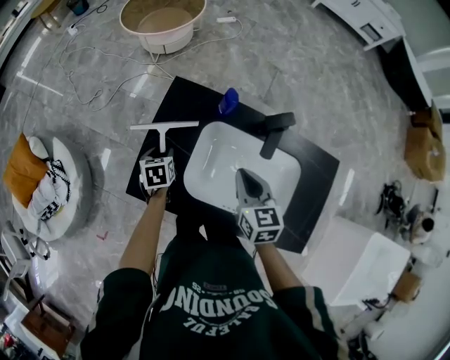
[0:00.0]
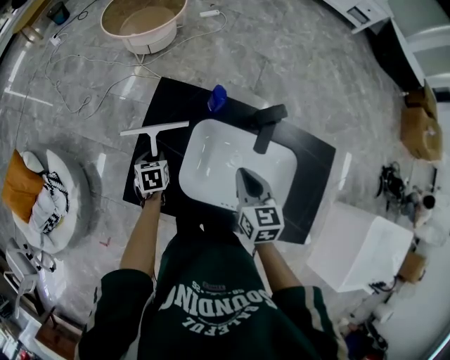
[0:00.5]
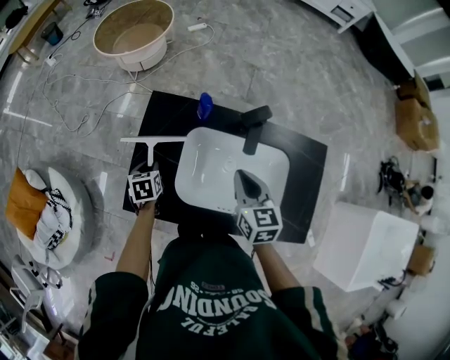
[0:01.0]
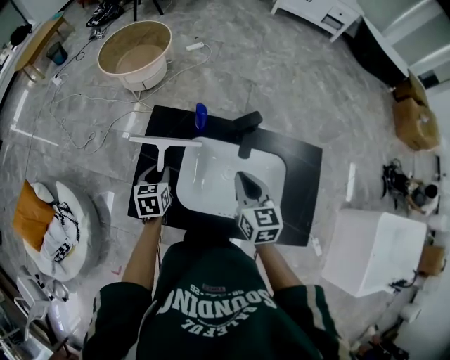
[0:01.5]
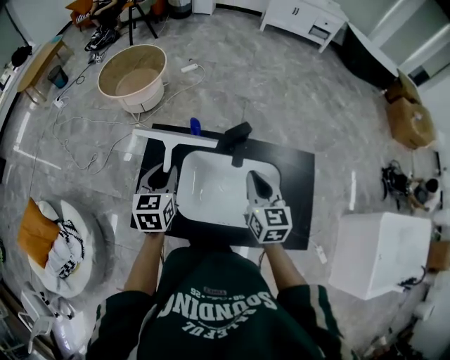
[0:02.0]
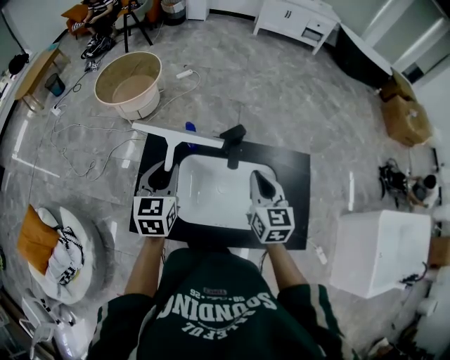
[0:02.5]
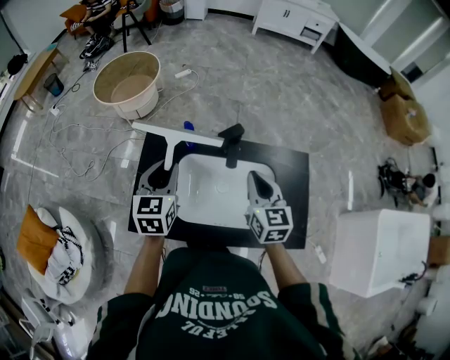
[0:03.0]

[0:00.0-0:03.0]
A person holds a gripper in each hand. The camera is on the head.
0:00.0 to 0:01.5: The left gripper heads upward and to the right, covering some 10 cm, and closes, while the right gripper moves roughly 5 cm.
0:01.5 to 0:03.0: The left gripper is displaced upward and to the right by roughly 20 cm, and turns by roughly 30 degrees. The right gripper travels to the right and upward by roughly 10 cm.

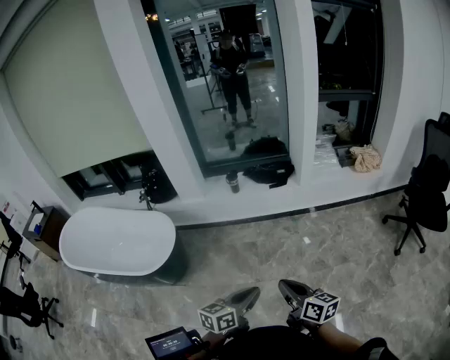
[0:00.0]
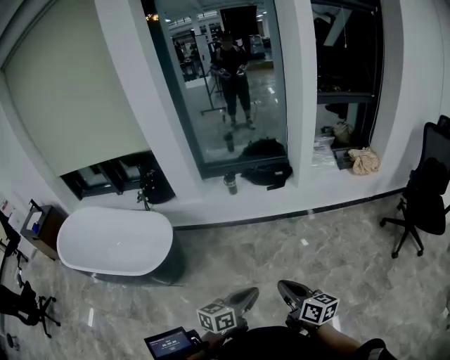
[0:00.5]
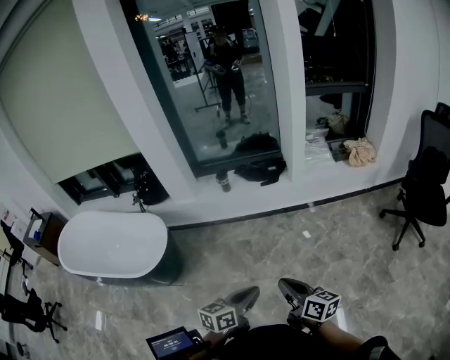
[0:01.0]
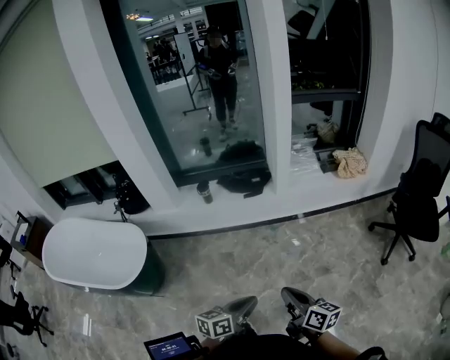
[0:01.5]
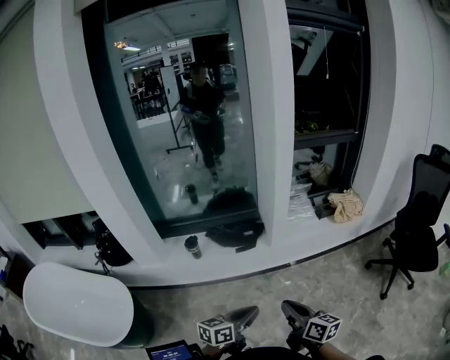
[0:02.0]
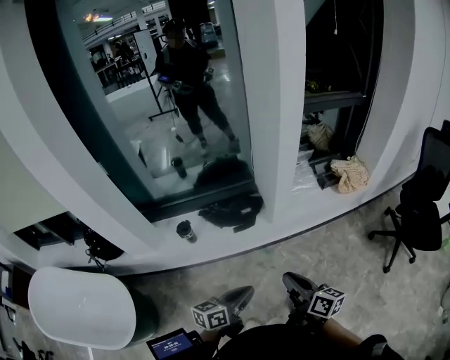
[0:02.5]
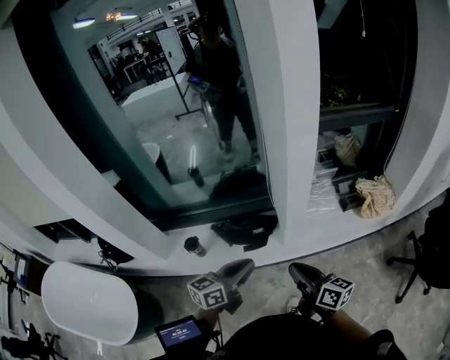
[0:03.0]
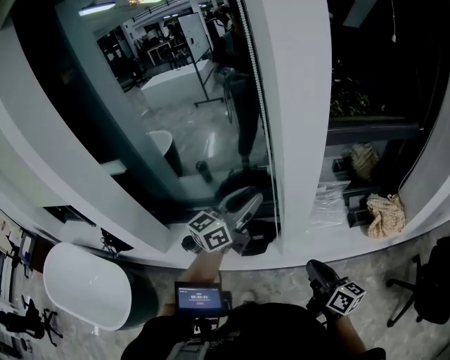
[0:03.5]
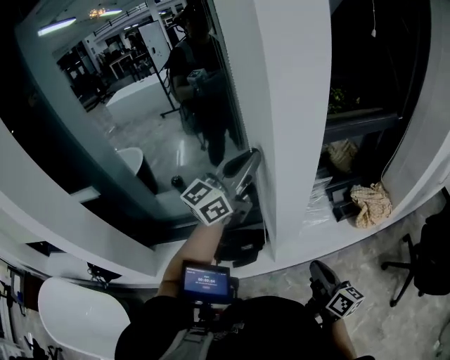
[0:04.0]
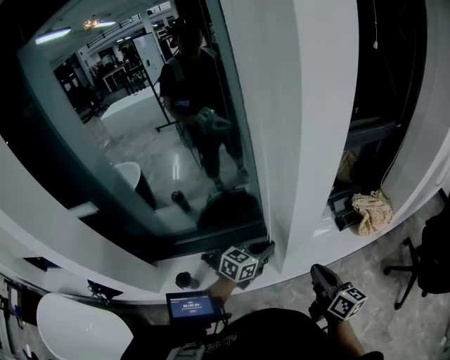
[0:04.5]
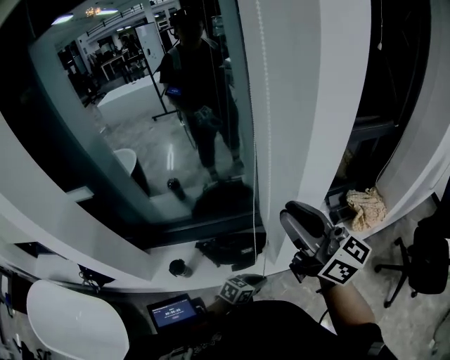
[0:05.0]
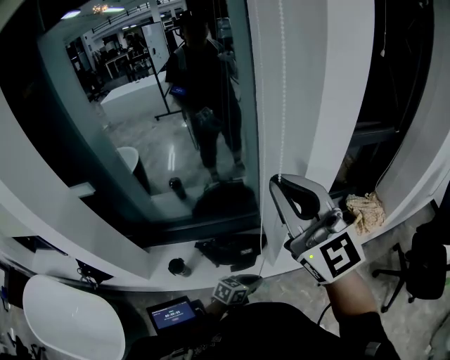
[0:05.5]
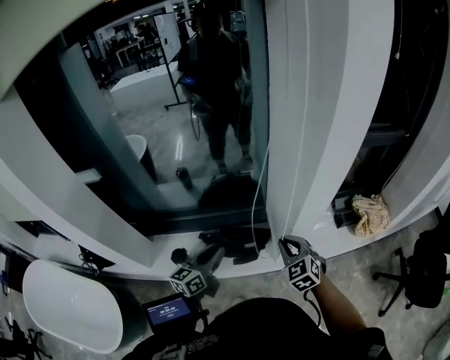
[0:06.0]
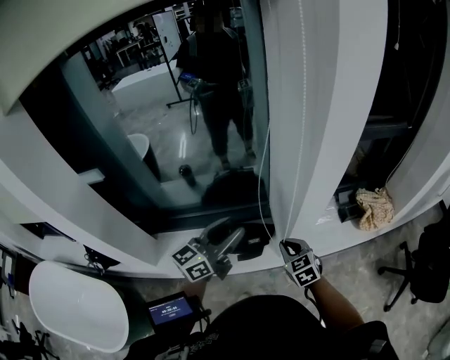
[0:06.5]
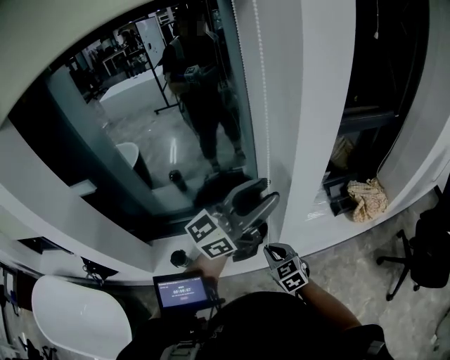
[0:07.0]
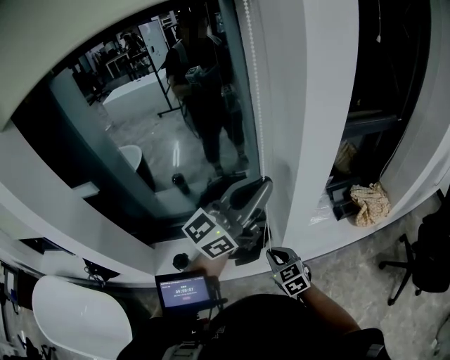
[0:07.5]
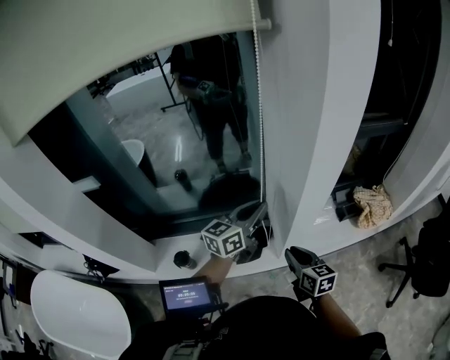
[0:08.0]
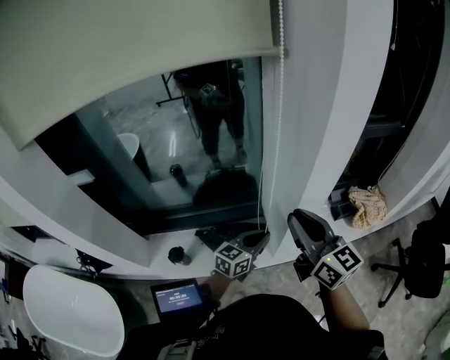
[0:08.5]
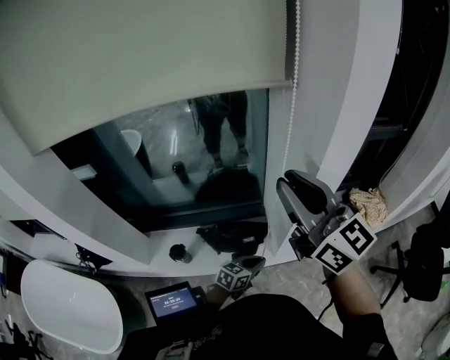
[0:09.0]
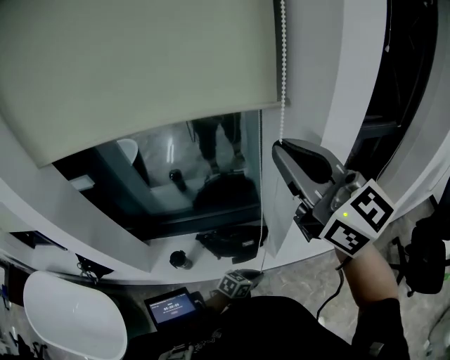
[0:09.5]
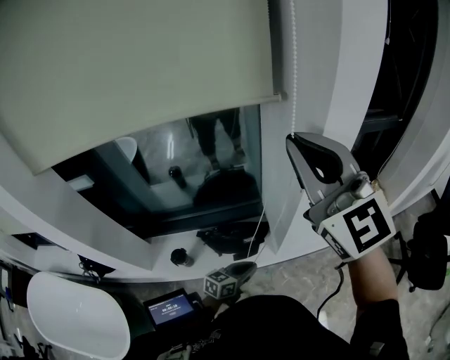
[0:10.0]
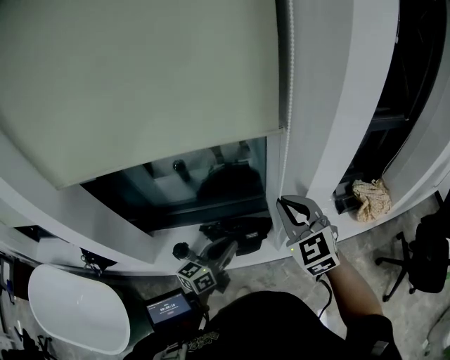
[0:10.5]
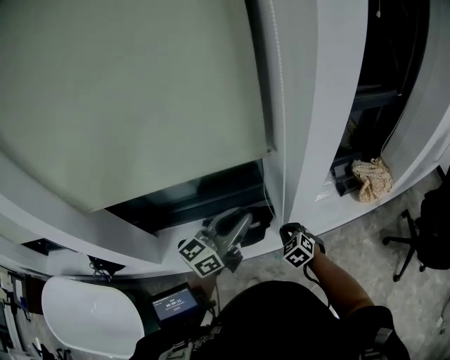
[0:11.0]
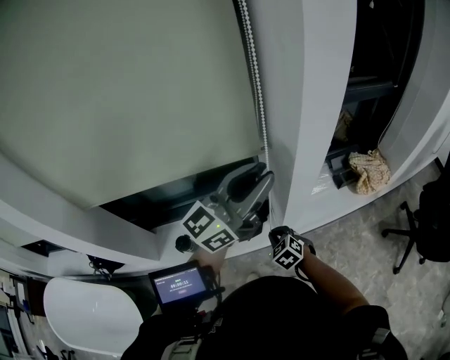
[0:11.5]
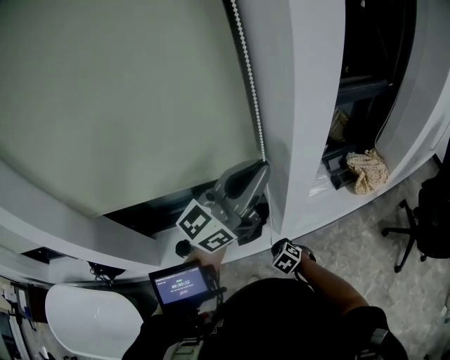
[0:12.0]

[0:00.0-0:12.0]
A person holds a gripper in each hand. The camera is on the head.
0:00.0 to 0:02.0: The right gripper shifts about 30 cm forward and to the right, while the left gripper travels forward by some 30 cm.
0:02.0 to 0:04.0: The pair of grippers is taken forward, some 50 cm. The left gripper travels upward by about 30 cm, tips its fingers upward by roughly 30 degrees, and opens, then closes once more.
0:04.0 to 0:06.0: The left gripper moves downward, backward and to the left, about 40 cm, and rotates roughly 40 degrees. Meanwhile the right gripper heads to the left, covering about 15 cm, moves about 35 cm upward and comes back, and rolls counterclockwise, seen from behind, by approximately 70 degrees.
0:06.0 to 0:08.0: The right gripper shifts by about 5 cm, and rotates around the line of its fingers by about 50 degrees, clockwise from behind; the left gripper travels to the right, forward and upward by about 20 cm.
0:08.0 to 0:10.0: The left gripper heads downward and backward, covering some 30 cm, and turns by some 30 degrees. Meanwhile the right gripper travels upward by roughly 40 cm, and rolls counterclockwise, seen from behind, by approximately 50 degrees.
0:10.0 to 0:12.0: The left gripper is displaced upward by about 40 cm, and angles its fingers upward, by some 40 degrees, while the right gripper heads downward, covering about 60 cm, and points its fingers roughly 80 degrees further downward.

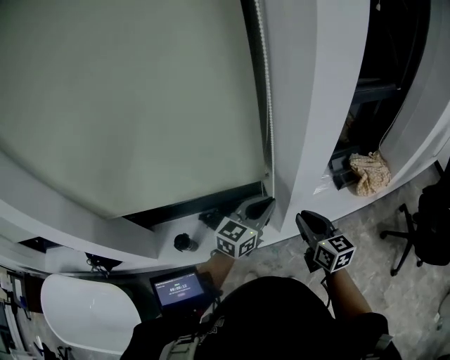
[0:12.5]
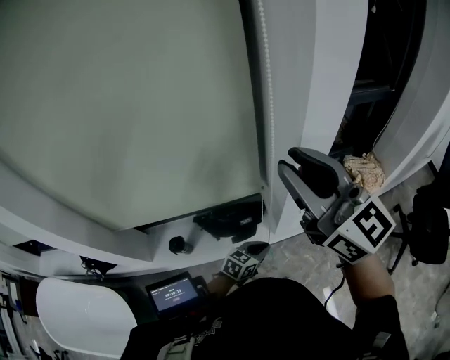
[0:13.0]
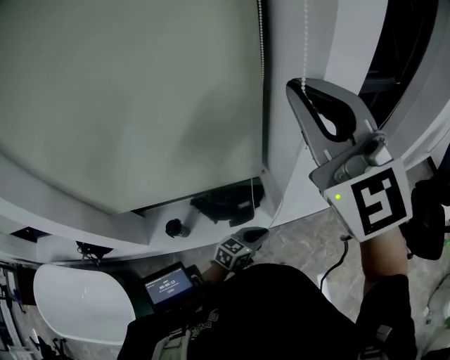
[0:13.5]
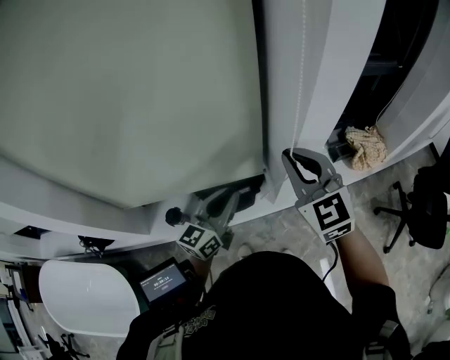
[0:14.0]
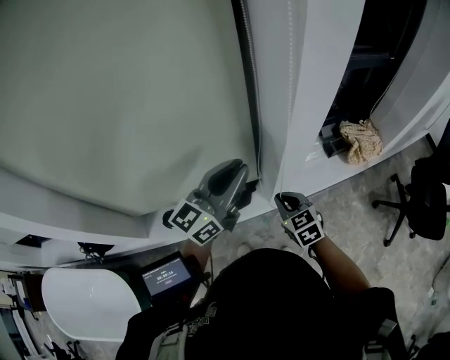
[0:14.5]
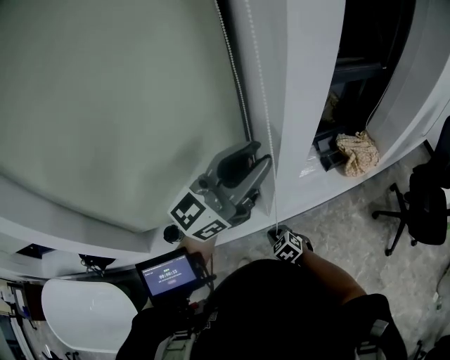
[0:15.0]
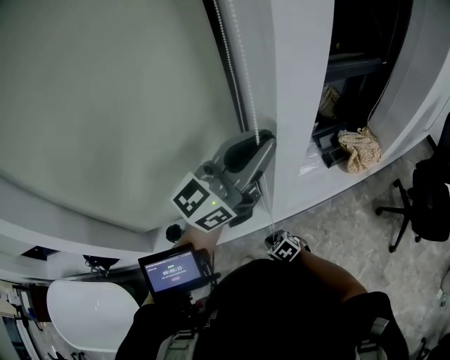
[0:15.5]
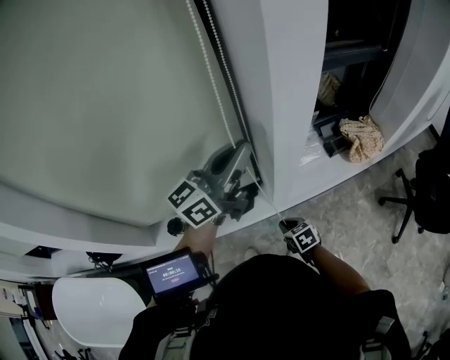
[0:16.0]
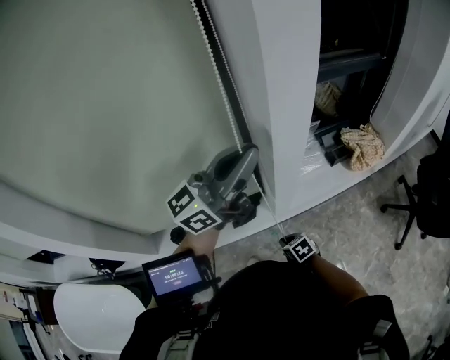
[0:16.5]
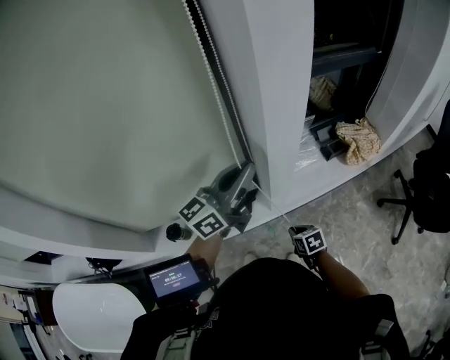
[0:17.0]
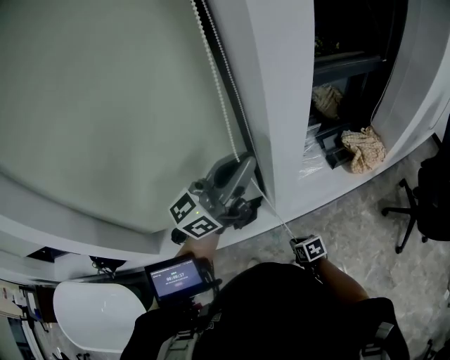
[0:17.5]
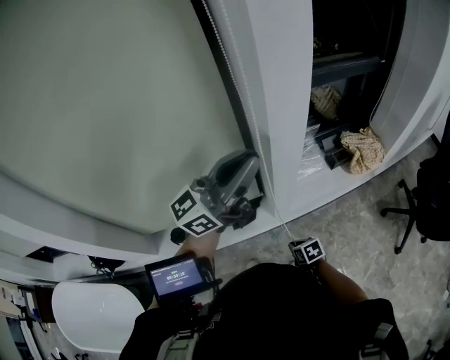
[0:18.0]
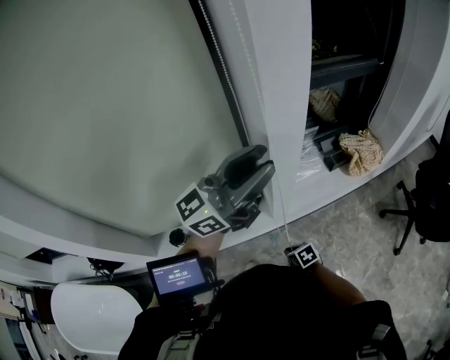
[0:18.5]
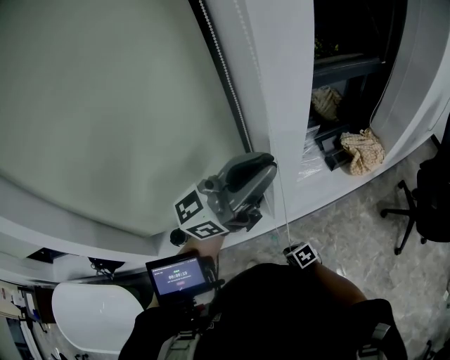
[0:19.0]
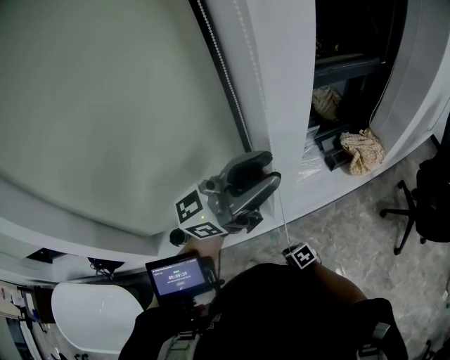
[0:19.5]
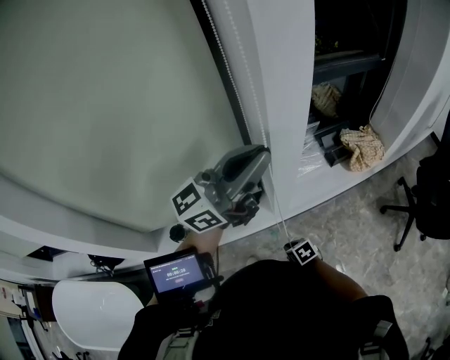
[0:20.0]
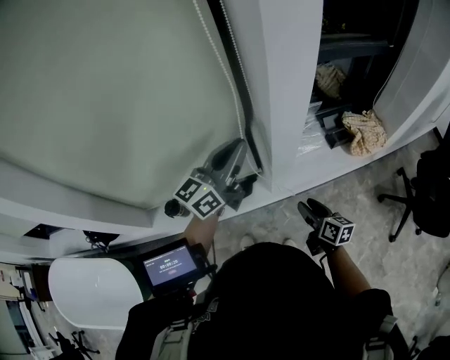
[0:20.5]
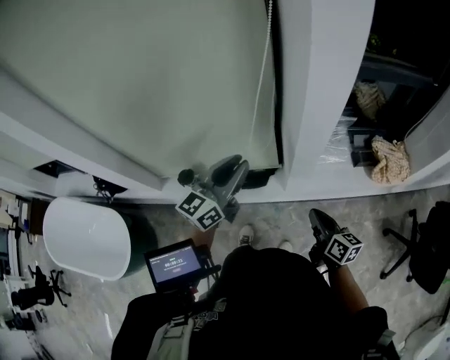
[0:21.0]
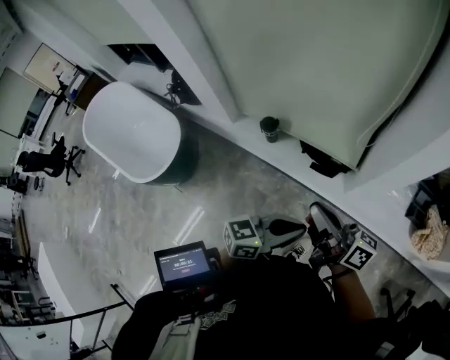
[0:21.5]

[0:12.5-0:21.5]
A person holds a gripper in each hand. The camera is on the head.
0:12.5 to 0:14.5: The right gripper reaches some 40 cm upward, then returns, and changes its angle by roughly 30 degrees, while the left gripper heads upward, covering some 10 cm, and swivels some 20 degrees.
0:14.5 to 0:17.0: The right gripper goes roughly 20 cm downward and backward, and rotates approximately 30 degrees. Meanwhile the left gripper goes up and down, approximately 15 cm each way, reversing 3 times.
0:17.0 to 0:19.5: The left gripper shifts about 15 cm upward, swivels about 30 degrees, and opens, while the right gripper moves about 10 cm.
0:19.5 to 0:21.5: The right gripper is displaced upward by about 35 cm, points its fingers about 70 degrees further upward, and opens and closes again. The left gripper heads downward, covering approximately 30 cm, tips its fingers downward by about 30 degrees, and closes up.

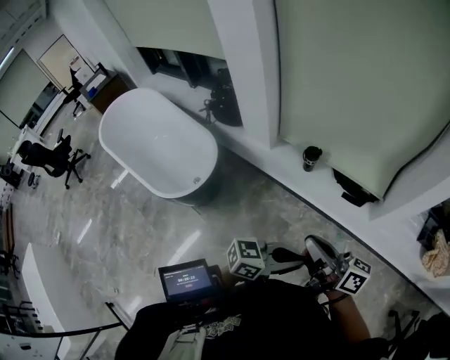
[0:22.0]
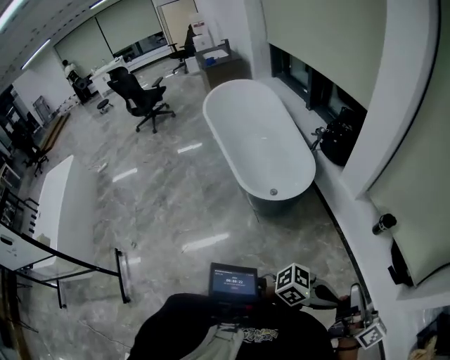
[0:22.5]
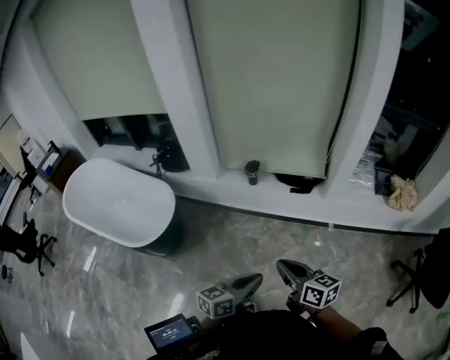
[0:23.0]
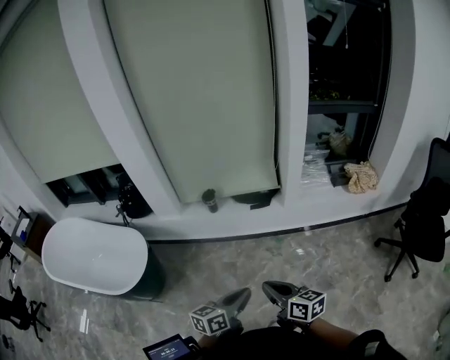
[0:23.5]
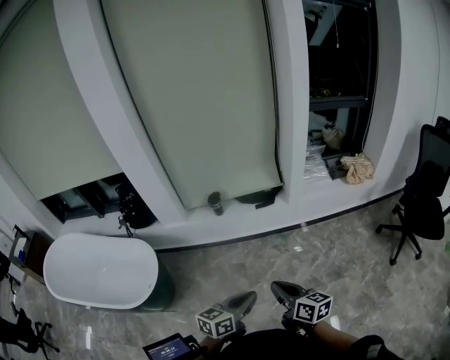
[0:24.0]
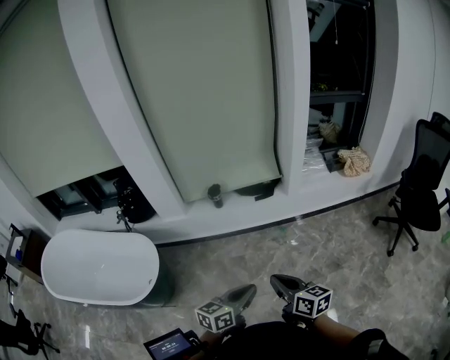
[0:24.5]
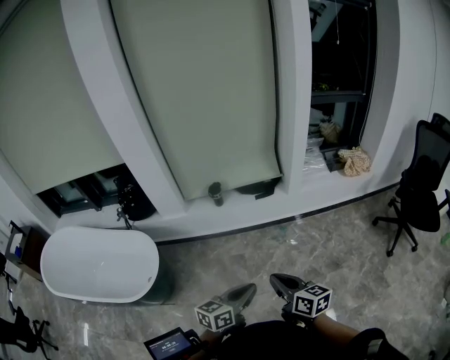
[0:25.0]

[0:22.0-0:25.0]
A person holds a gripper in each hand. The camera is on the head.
0:22.0 to 0:23.5: The right gripper changes place by some 25 cm, and changes its angle by some 40 degrees. Meanwhile the left gripper moves some 20 cm.
0:23.5 to 0:25.0: Both grippers move to the left, some 10 cm.
